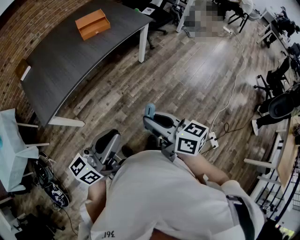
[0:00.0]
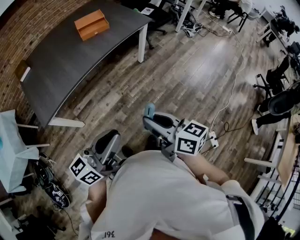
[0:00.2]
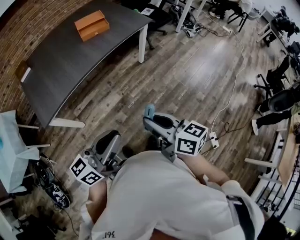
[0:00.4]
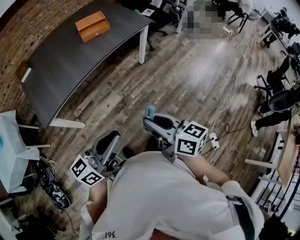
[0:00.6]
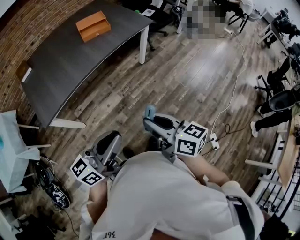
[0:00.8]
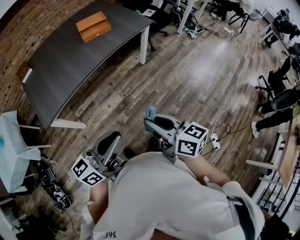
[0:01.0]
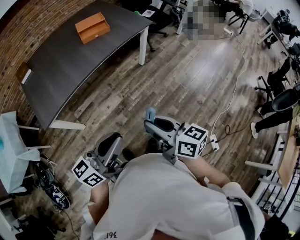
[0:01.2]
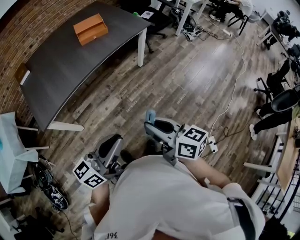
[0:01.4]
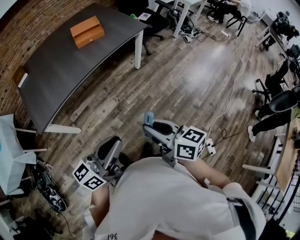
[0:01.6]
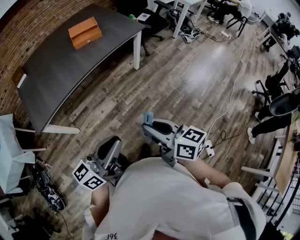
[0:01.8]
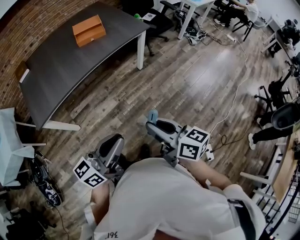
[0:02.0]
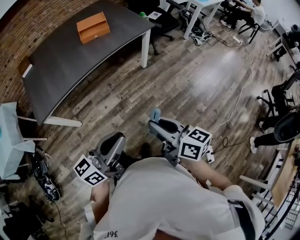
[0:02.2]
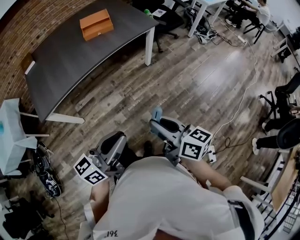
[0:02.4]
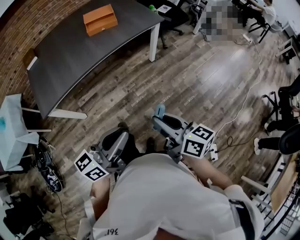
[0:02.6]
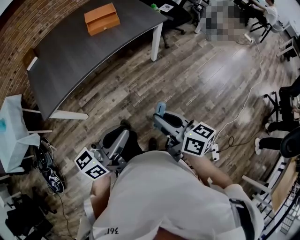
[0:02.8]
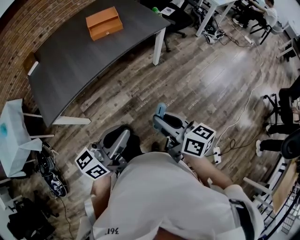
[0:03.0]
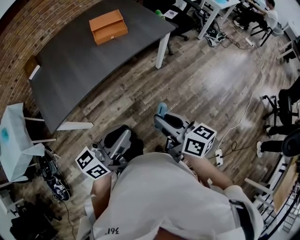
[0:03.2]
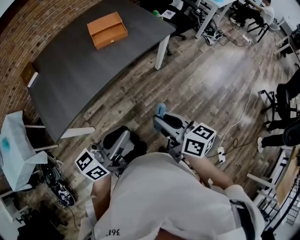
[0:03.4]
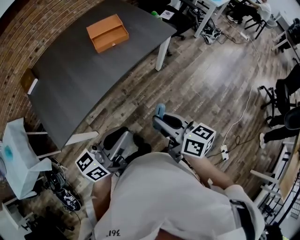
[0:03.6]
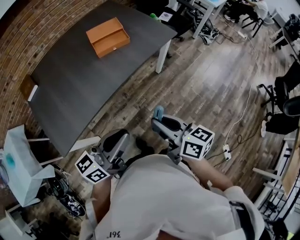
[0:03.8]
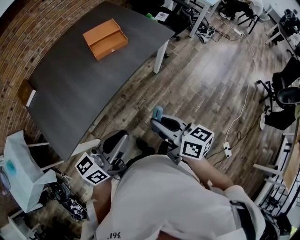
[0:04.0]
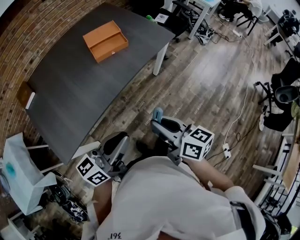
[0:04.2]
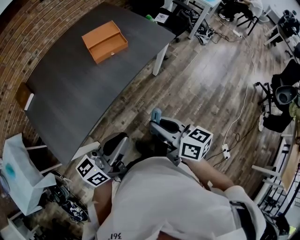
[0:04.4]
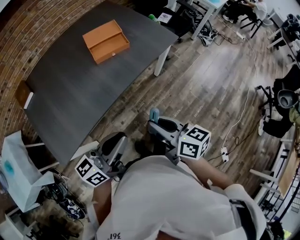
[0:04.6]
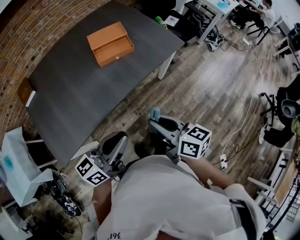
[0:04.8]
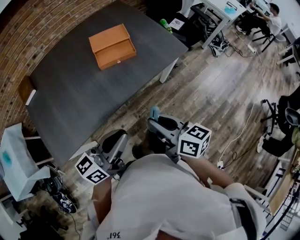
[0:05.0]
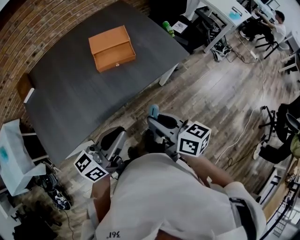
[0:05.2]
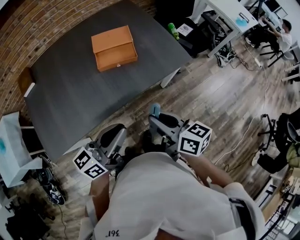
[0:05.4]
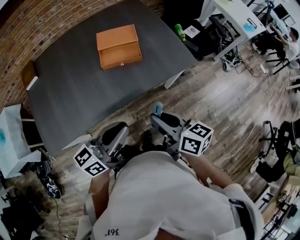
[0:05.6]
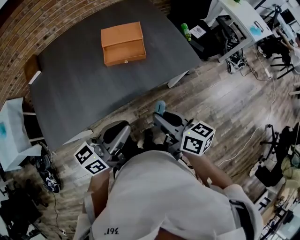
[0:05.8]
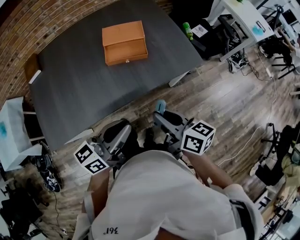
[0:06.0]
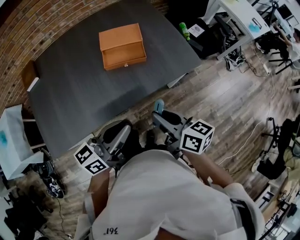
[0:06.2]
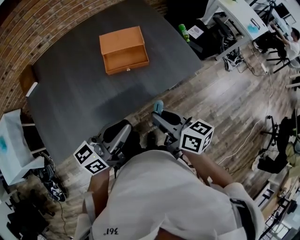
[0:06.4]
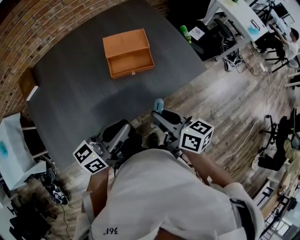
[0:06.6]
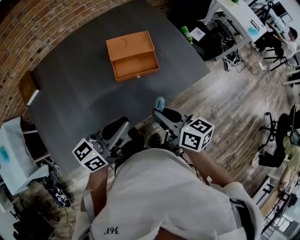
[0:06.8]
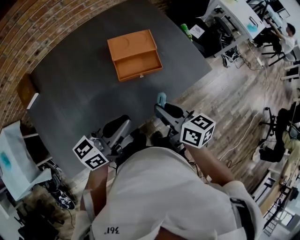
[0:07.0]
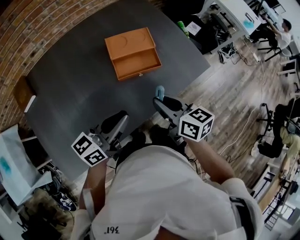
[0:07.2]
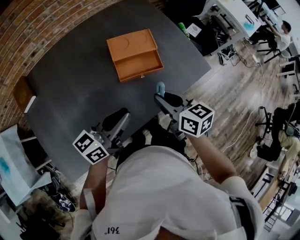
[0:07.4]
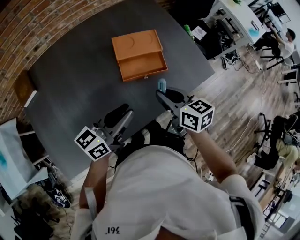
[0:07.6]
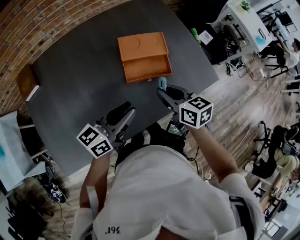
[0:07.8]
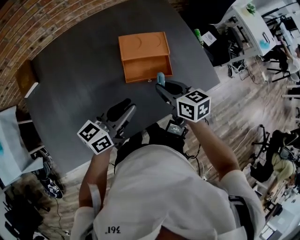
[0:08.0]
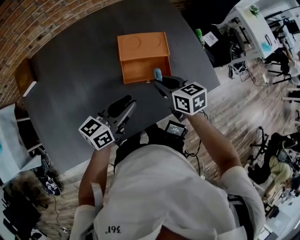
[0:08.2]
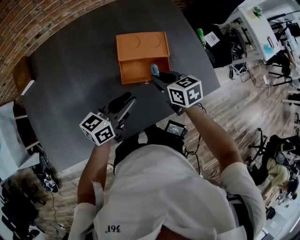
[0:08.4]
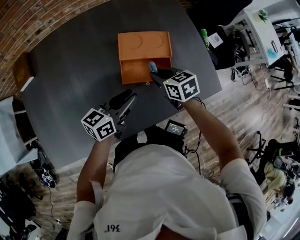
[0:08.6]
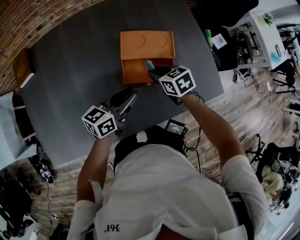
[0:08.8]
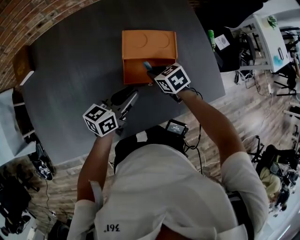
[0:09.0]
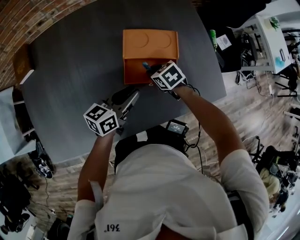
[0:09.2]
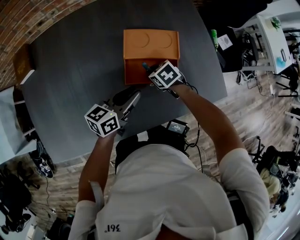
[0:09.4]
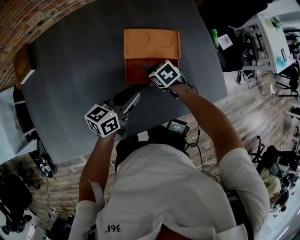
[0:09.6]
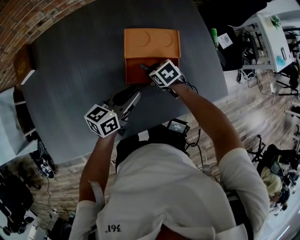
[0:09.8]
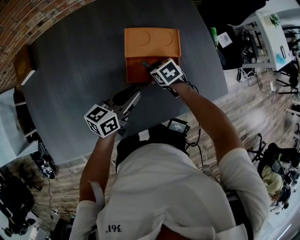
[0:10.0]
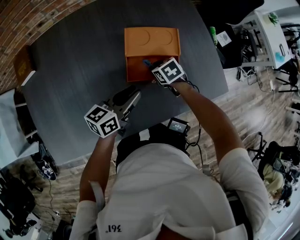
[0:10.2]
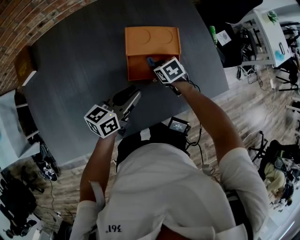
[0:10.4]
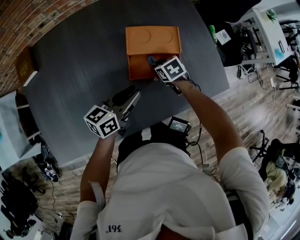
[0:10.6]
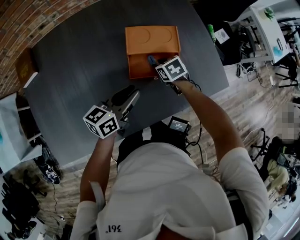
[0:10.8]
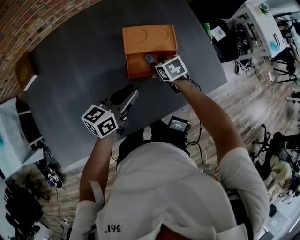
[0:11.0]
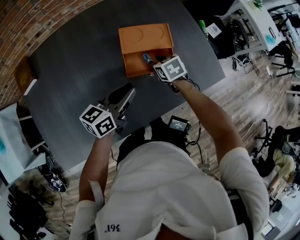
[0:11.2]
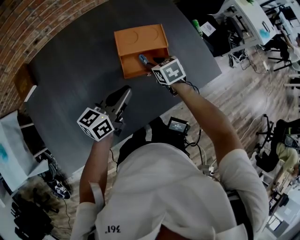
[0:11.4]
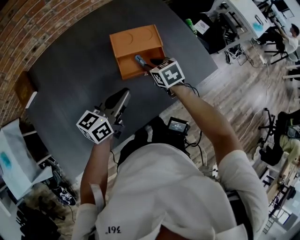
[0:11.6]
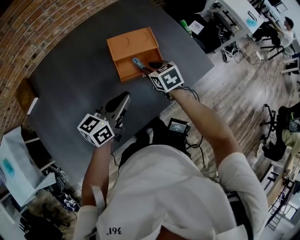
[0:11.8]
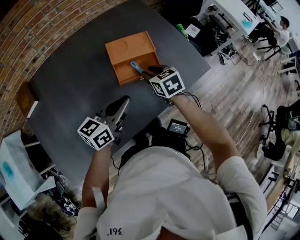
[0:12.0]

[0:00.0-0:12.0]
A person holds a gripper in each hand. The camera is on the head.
0:00.0 to 0:01.6: The left gripper changes place by some 5 cm.
0:01.6 to 0:03.0: Both grippers travel together forward, some 10 cm.
0:03.0 to 0:04.4: The grippers both shift to the left and forward by roughly 20 cm.
0:04.4 to 0:06.0: The two grippers go roughly 20 cm forward and to the right.
0:06.0 to 0:07.6: Both grippers travel together forward and to the left, some 20 cm.
0:07.6 to 0:09.0: The left gripper goes about 15 cm forward and downward; the right gripper goes about 25 cm downward and forward, and rotates approximately 40 degrees.
0:09.0 to 0:10.4: The right gripper goes roughly 5 cm downward.
0:10.4 to 0:12.0: The right gripper travels upward and backward by roughly 15 cm, and rotates some 30 degrees, while the left gripper travels upward and backward by about 10 cm.

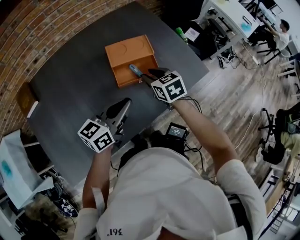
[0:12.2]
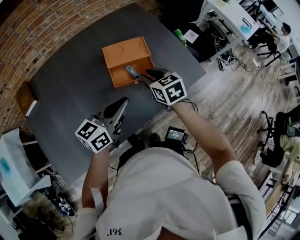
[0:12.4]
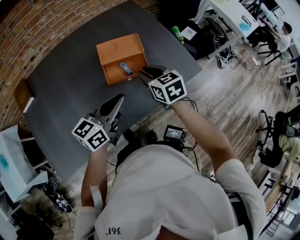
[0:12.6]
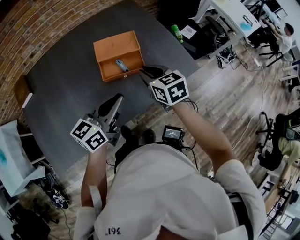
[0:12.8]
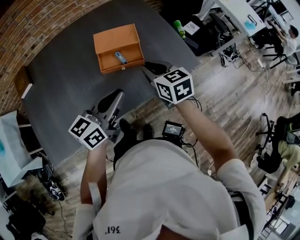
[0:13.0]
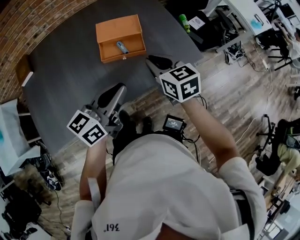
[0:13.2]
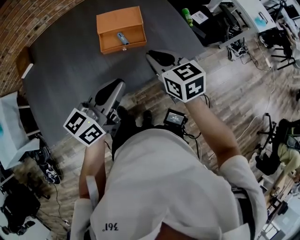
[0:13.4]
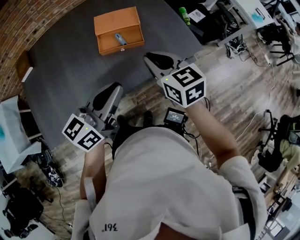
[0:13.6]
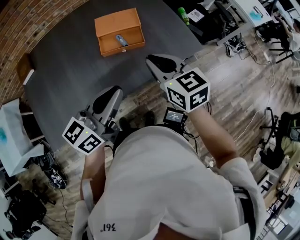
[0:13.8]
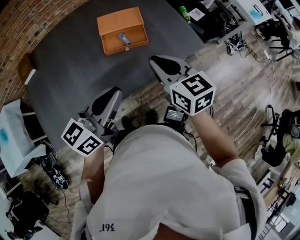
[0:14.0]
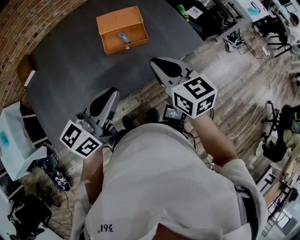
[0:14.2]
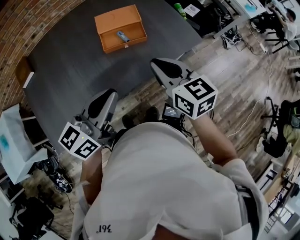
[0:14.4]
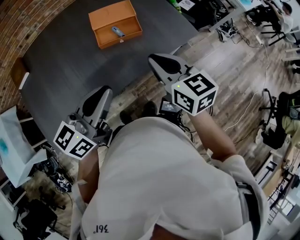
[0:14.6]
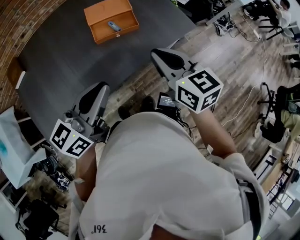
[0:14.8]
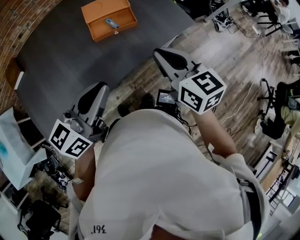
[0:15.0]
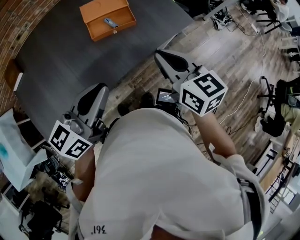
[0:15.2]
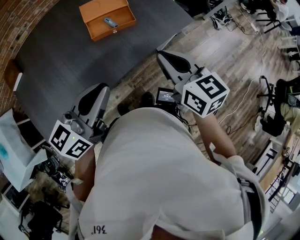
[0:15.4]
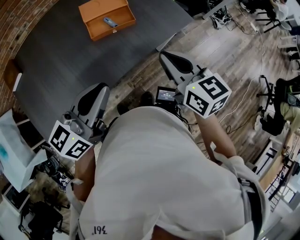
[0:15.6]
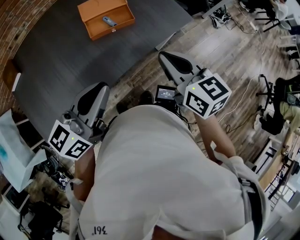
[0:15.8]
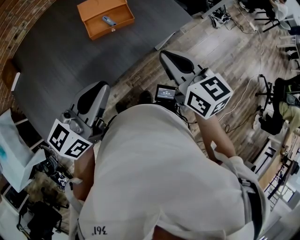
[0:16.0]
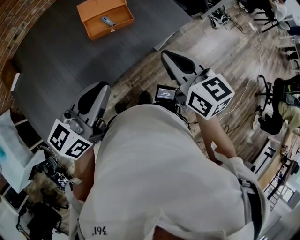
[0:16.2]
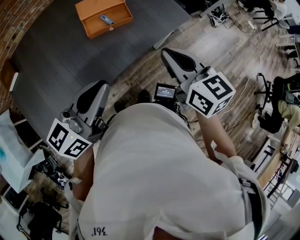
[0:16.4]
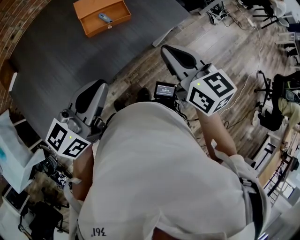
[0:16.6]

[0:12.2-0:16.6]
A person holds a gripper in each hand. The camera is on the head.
0:12.2 to 0:13.6: The left gripper is displaced backward, to the right and upward by some 15 cm. Meanwhile the right gripper shifts about 20 cm backward, upward and to the right, and closes up.
0:13.6 to 0:15.2: The left gripper goes about 10 cm to the left and backward. Meanwhile the right gripper goes approximately 10 cm backward.
0:15.2 to 0:16.6: The grippers move only a little.

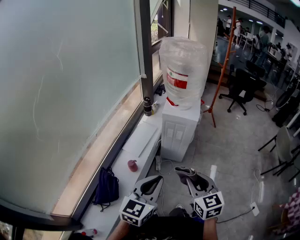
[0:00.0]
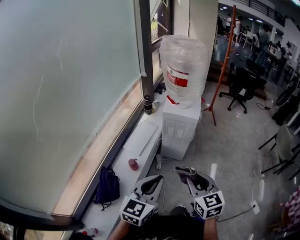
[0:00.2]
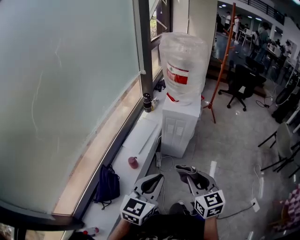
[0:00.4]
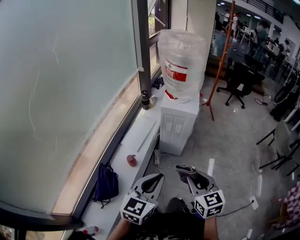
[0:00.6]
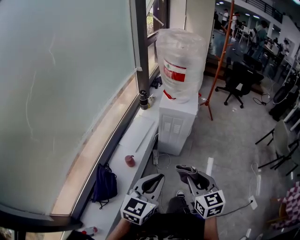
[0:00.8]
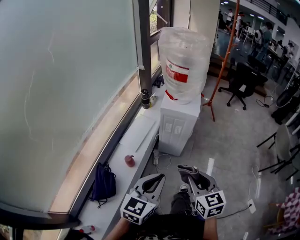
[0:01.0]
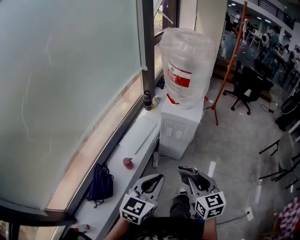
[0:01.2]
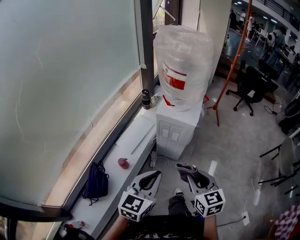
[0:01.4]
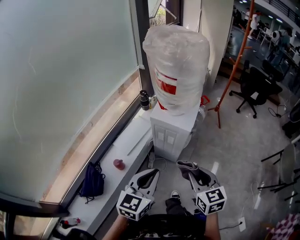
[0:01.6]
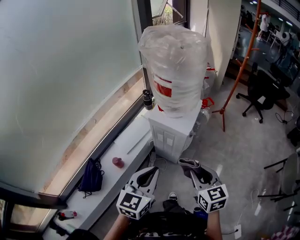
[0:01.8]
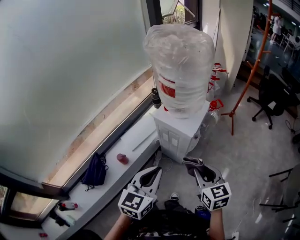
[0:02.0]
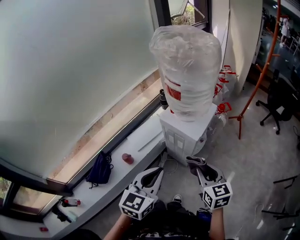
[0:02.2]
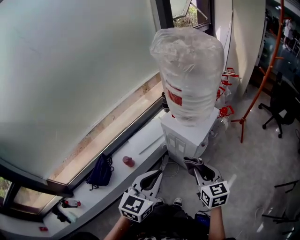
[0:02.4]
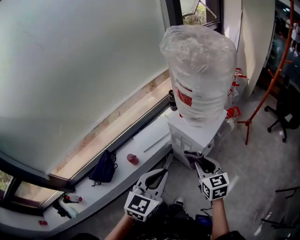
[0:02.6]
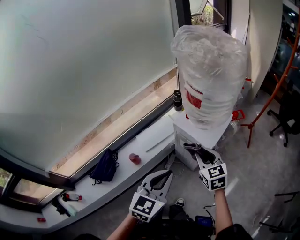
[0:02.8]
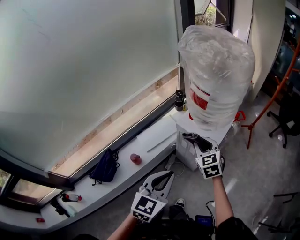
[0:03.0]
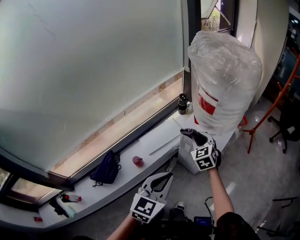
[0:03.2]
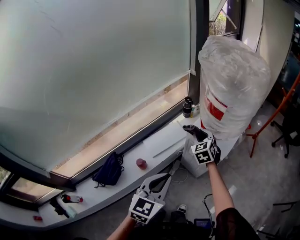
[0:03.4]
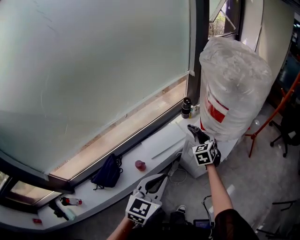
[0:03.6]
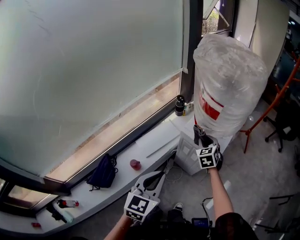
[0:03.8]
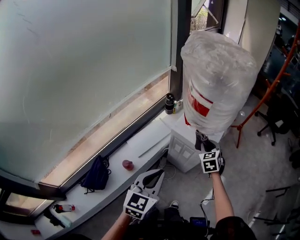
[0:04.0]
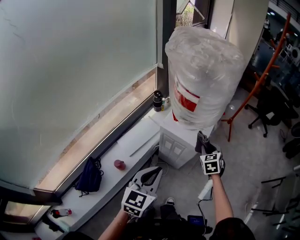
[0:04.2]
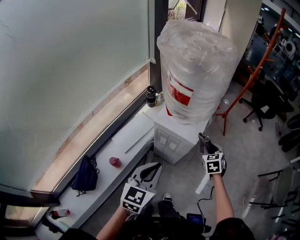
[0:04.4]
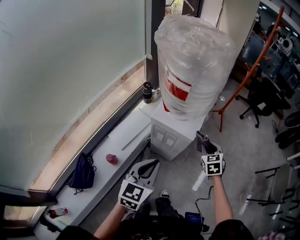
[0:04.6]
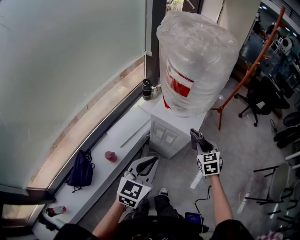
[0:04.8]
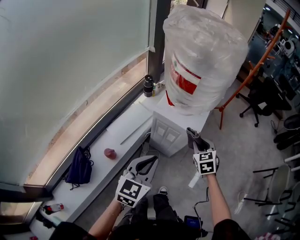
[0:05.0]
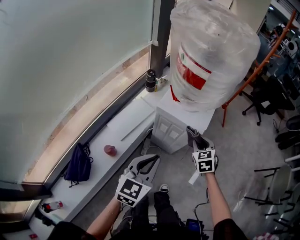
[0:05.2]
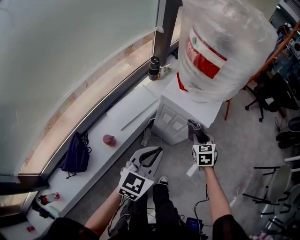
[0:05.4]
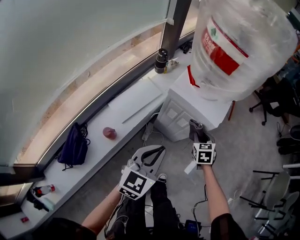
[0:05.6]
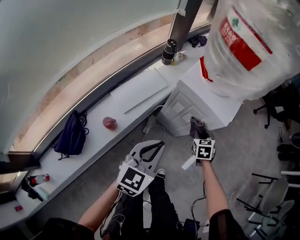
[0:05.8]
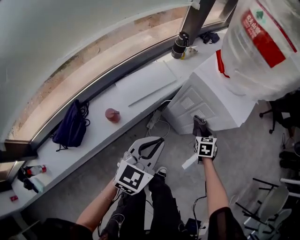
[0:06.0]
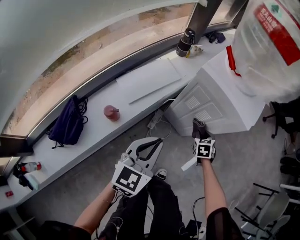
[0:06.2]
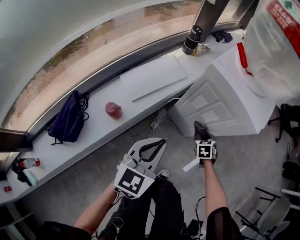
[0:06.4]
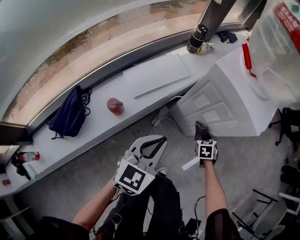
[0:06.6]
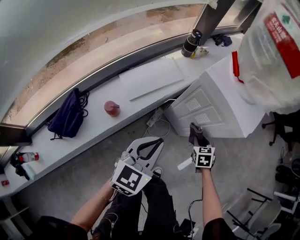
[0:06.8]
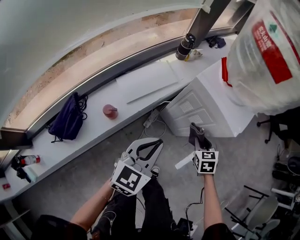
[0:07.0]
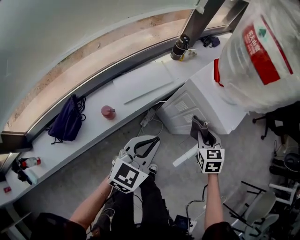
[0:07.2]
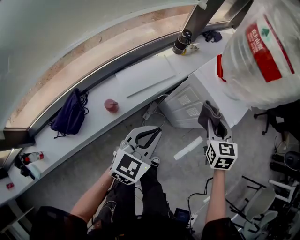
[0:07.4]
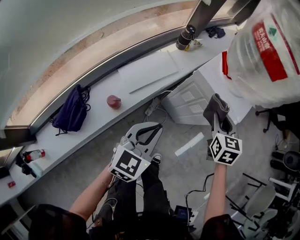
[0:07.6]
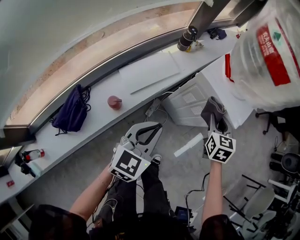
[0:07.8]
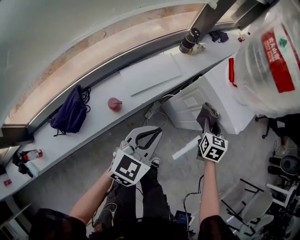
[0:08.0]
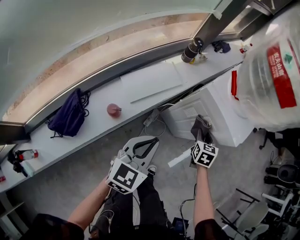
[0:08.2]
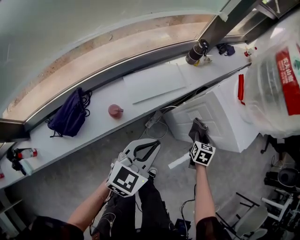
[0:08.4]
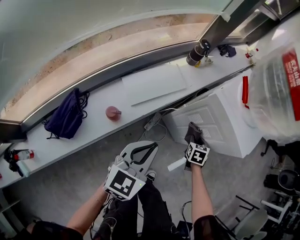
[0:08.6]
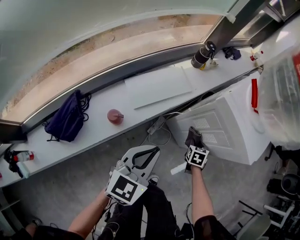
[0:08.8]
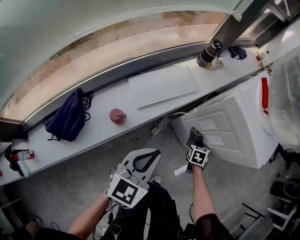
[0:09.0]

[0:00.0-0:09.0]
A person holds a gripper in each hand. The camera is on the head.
0:00.0 to 0:01.6: Both grippers move forward and to the right, some 20 cm.
0:01.6 to 0:03.0: The right gripper is displaced forward by about 25 cm, and swivels about 30 degrees. Meanwhile the left gripper heads forward, covering about 5 cm.
0:03.0 to 0:04.4: The right gripper heads to the right and downward, covering approximately 20 cm, and rotates approximately 30 degrees. Meanwhile the left gripper travels to the left and back again, some 10 cm each way.
0:04.4 to 0:06.0: Both grippers move downward, about 25 cm.
0:06.0 to 0:07.6: The left gripper goes downward and returns, approximately 5 cm each way; the right gripper travels upward by approximately 25 cm.
0:07.6 to 0:09.0: The right gripper goes about 40 cm downward, and turns by some 20 degrees, while the left gripper is displaced downward by approximately 10 cm.
